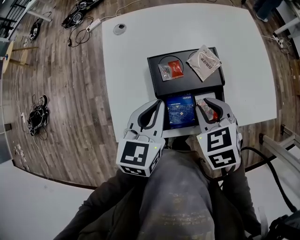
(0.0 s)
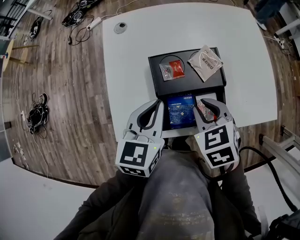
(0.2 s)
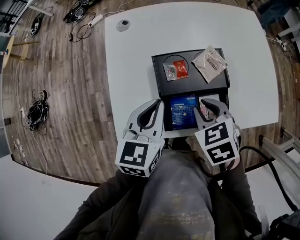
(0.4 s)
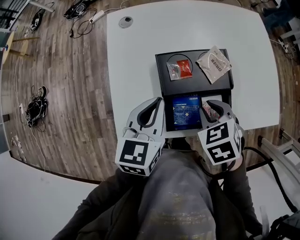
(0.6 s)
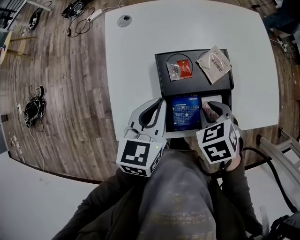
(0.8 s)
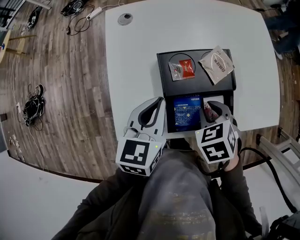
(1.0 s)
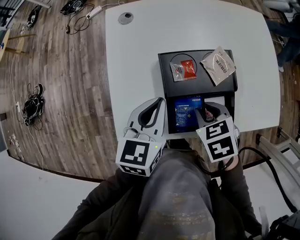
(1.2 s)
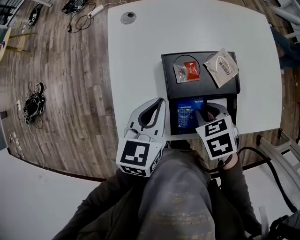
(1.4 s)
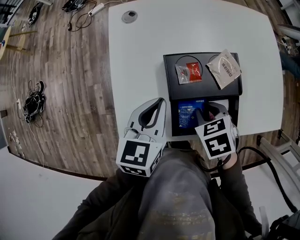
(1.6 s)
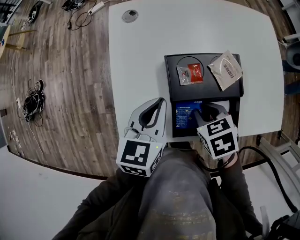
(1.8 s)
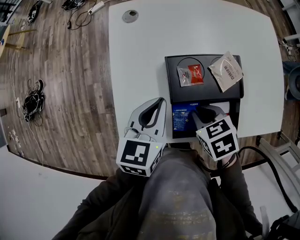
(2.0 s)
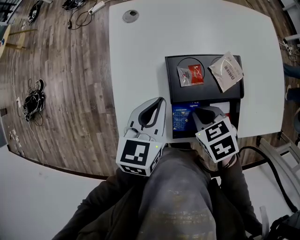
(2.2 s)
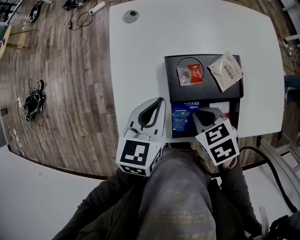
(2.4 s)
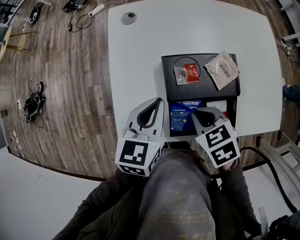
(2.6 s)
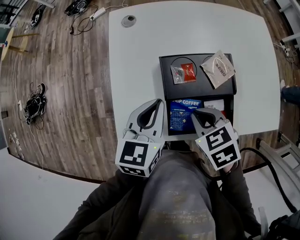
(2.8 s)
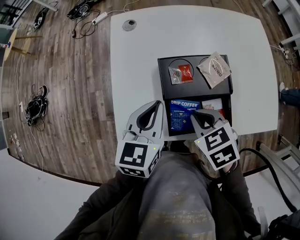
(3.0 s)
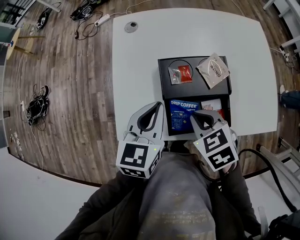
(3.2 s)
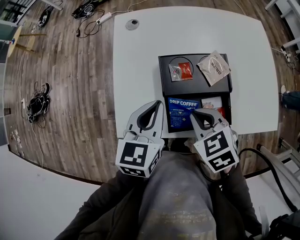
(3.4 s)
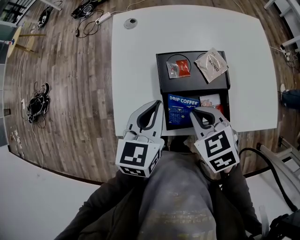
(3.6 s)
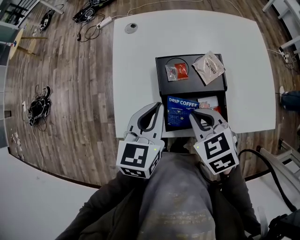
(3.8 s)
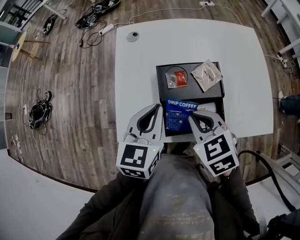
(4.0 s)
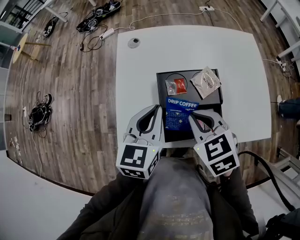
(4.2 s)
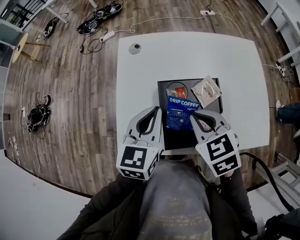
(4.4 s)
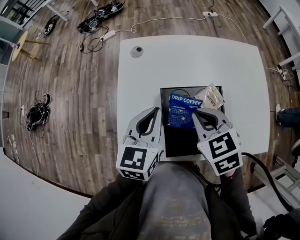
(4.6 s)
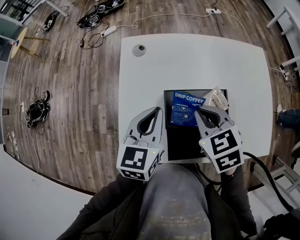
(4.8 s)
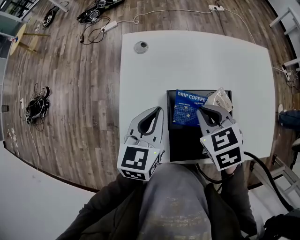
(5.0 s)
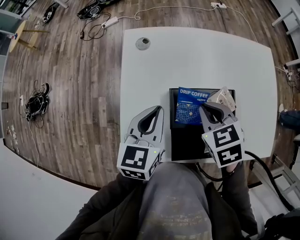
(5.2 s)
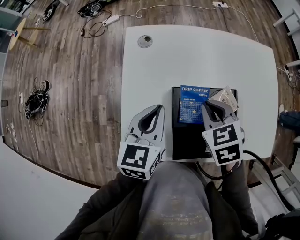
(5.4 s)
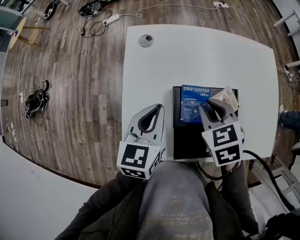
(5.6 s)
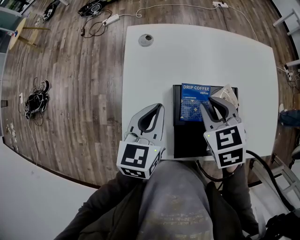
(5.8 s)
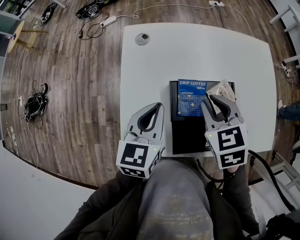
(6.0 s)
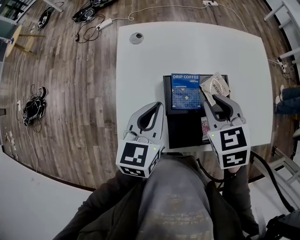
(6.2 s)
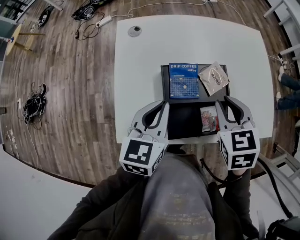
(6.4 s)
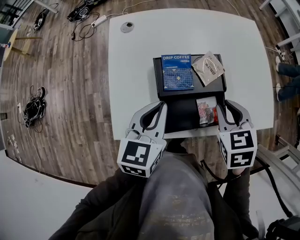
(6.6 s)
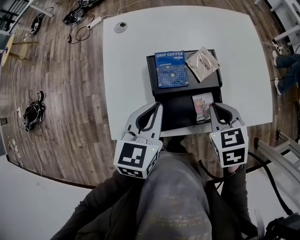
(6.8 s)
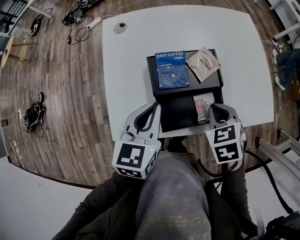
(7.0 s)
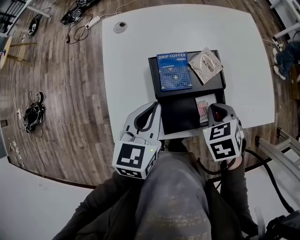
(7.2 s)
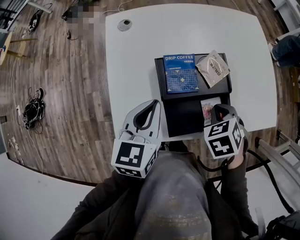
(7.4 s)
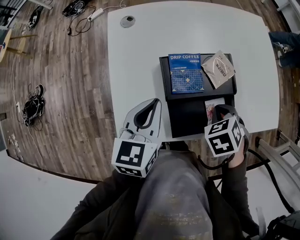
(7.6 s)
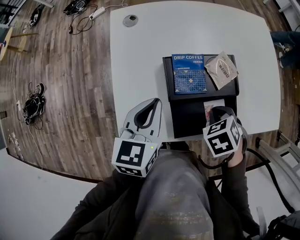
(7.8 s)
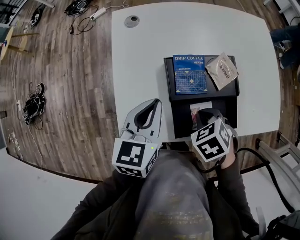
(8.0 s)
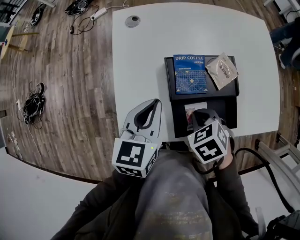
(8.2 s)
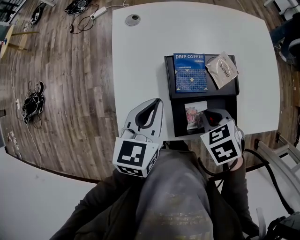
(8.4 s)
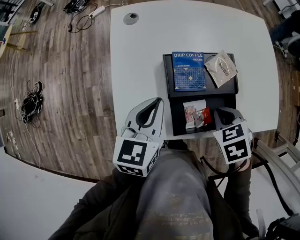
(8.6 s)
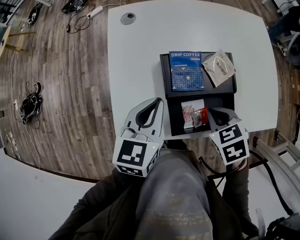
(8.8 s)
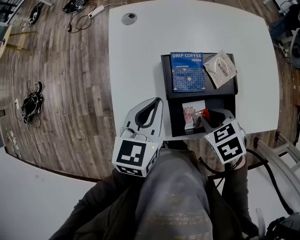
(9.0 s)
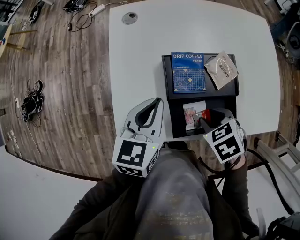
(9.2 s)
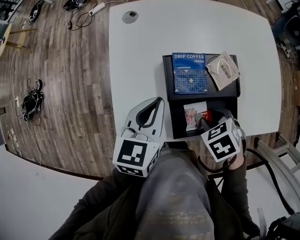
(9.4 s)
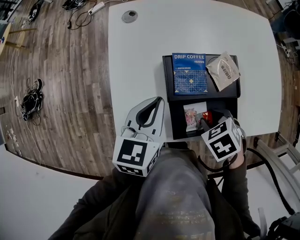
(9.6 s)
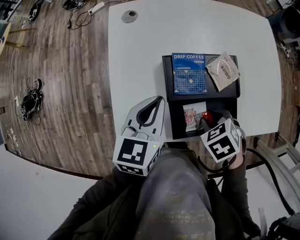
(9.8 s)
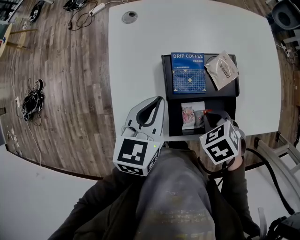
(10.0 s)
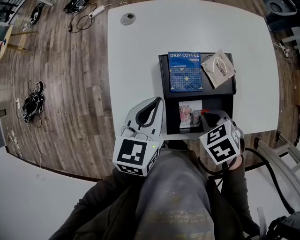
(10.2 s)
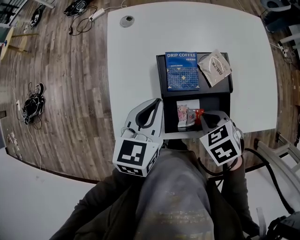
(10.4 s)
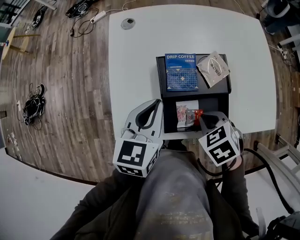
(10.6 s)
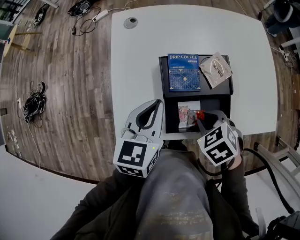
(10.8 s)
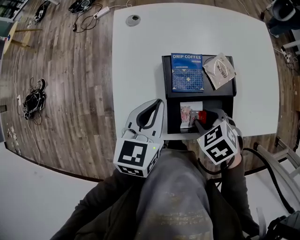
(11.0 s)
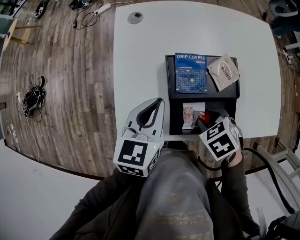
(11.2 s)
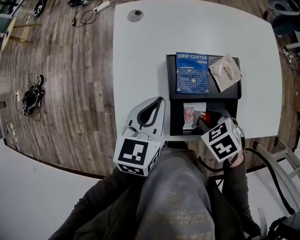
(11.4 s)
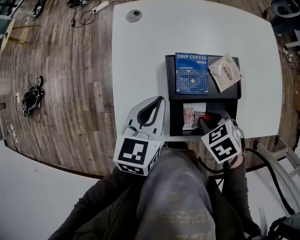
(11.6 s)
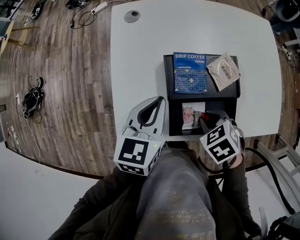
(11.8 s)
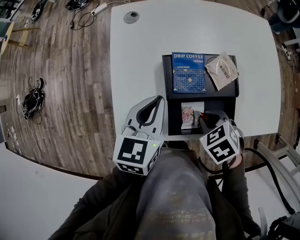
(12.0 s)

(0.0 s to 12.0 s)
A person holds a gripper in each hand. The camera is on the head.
0.0 s - 1.6 s: The left gripper moves about 5 cm. Meanwhile the right gripper heads downward, covering roughly 10 cm.
1.6 s - 3.0 s: The right gripper is displaced upward by approximately 5 cm.
3.0 s - 4.4 s: The left gripper ends up approximately 5 cm from where it was; the right gripper heads upward and forward, covering approximately 10 cm.
4.4 s - 6.0 s: The right gripper heads forward, covering about 5 cm; the left gripper moves approximately 5 cm.
6.0 s - 7.6 s: The right gripper shifts some 20 cm downward, to the right and backward, rotates roughly 30 degrees, and closes its fingers.
7.6 s - 9.0 s: The right gripper opens.
9.0 s - 10.4 s: The right gripper closes up.
10.4 s - 12.0 s: The right gripper opens and closes again.

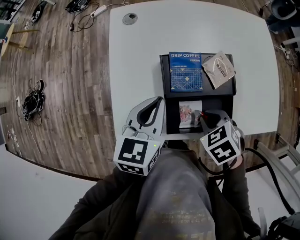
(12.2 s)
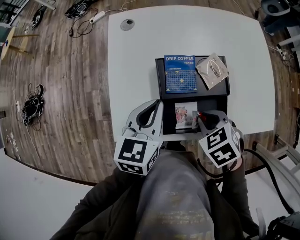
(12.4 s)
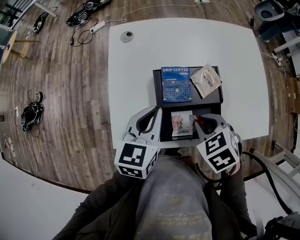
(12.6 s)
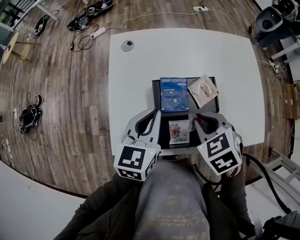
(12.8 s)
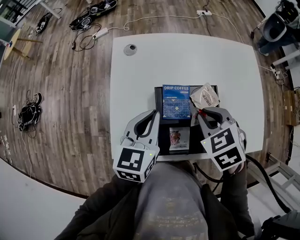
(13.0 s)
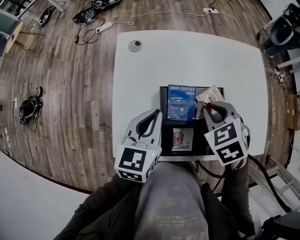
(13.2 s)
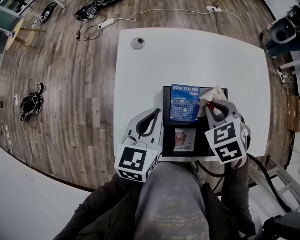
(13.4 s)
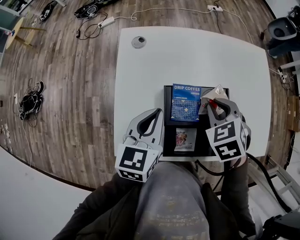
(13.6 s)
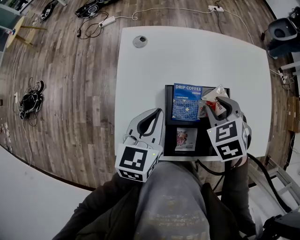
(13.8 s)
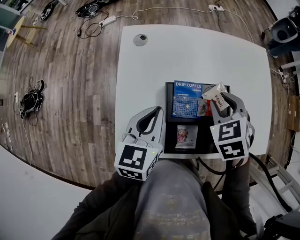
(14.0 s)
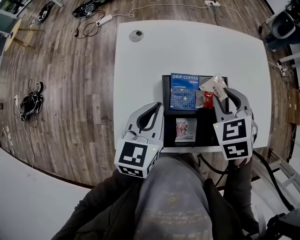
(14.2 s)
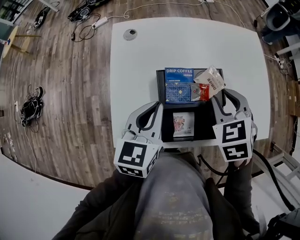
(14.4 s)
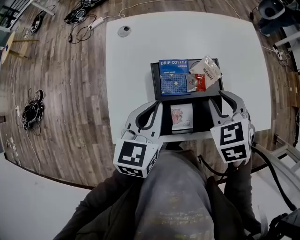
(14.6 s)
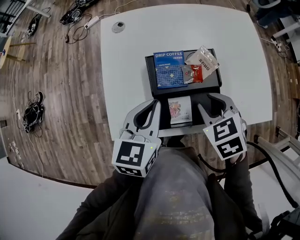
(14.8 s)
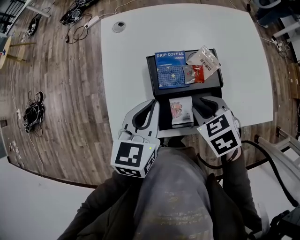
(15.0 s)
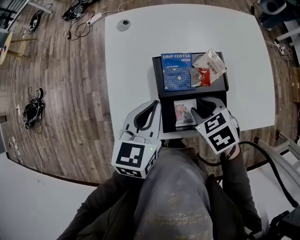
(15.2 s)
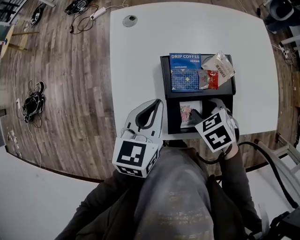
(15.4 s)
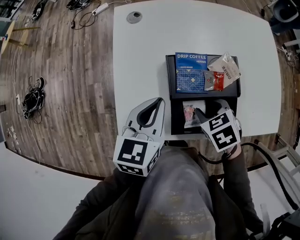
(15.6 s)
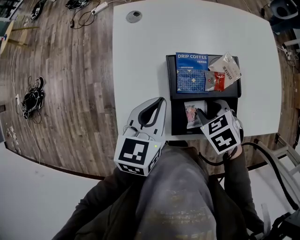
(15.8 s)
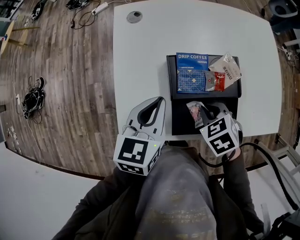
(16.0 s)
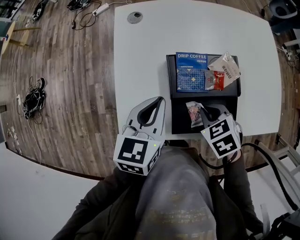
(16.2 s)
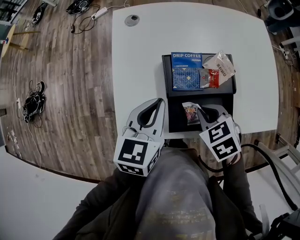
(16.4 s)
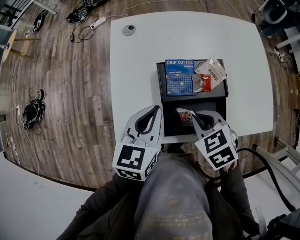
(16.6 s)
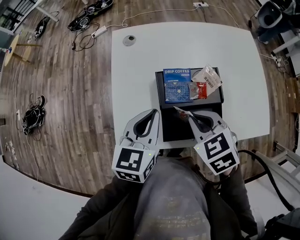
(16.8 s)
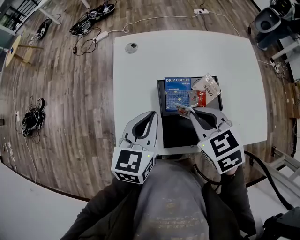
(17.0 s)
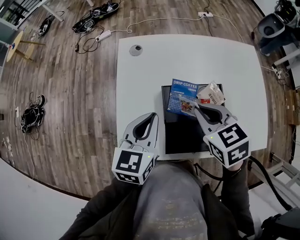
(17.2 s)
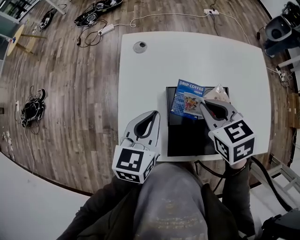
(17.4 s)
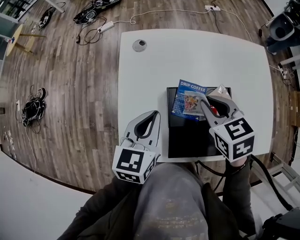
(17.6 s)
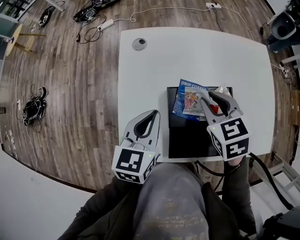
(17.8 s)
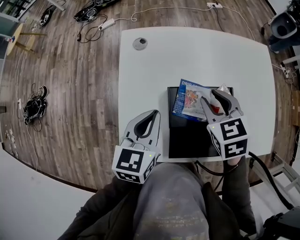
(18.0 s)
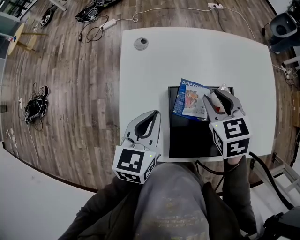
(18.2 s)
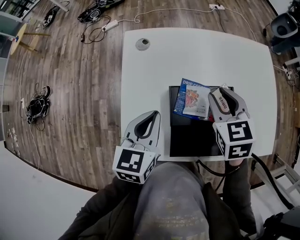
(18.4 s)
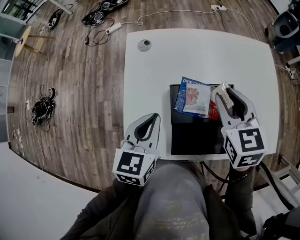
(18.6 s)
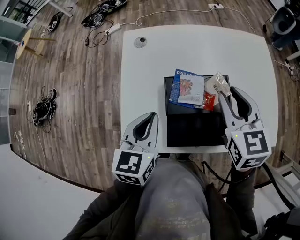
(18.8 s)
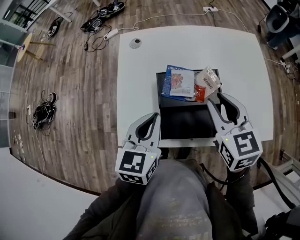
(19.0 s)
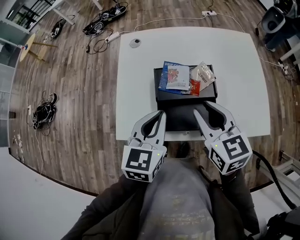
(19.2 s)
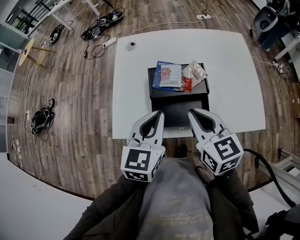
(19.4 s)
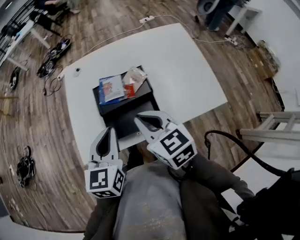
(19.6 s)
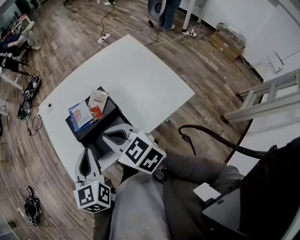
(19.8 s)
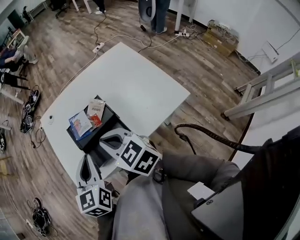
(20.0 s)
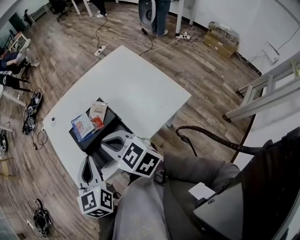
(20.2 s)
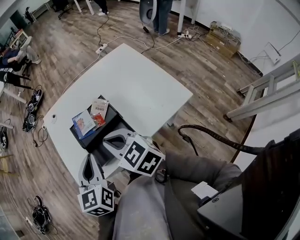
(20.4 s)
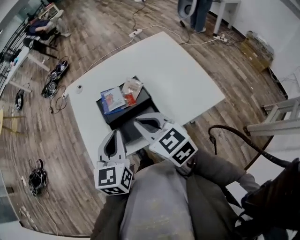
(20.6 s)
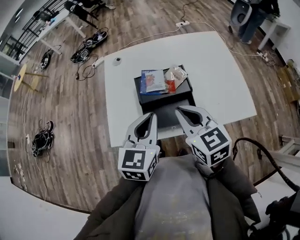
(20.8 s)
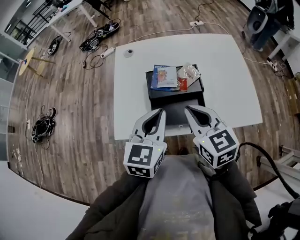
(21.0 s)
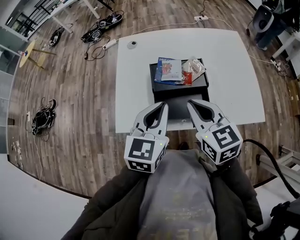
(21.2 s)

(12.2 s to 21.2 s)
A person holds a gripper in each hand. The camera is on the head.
12.2 s - 13.8 s: The right gripper is displaced forward and upward by roughly 15 cm; the left gripper moves approximately 5 cm.
13.8 s - 15.2 s: The left gripper is displaced backward by roughly 5 cm; the right gripper is displaced backward and downward by about 15 cm.
15.2 s - 16.6 s: The right gripper closes.
16.6 s - 18.2 s: The right gripper shifts roughly 15 cm forward, and opens its fingers. The left gripper goes roughly 5 cm forward.
18.2 s - 19.8 s: The right gripper shifts roughly 20 cm backward, rotates about 20 degrees, and closes, while the left gripper shifts approximately 20 cm backward, to the right and upward.
19.8 s - 21.2 s: The grippers stay close to where they were, moving slightly.

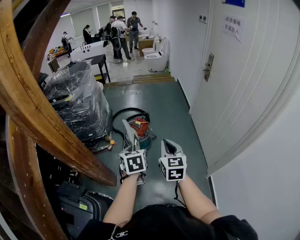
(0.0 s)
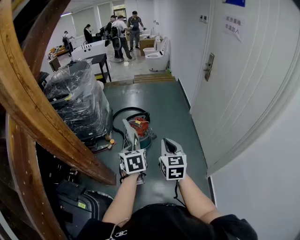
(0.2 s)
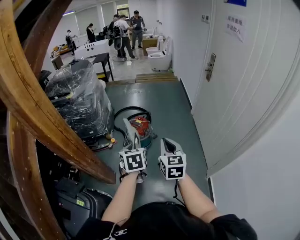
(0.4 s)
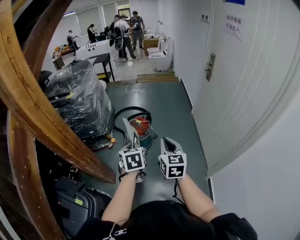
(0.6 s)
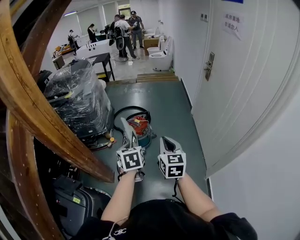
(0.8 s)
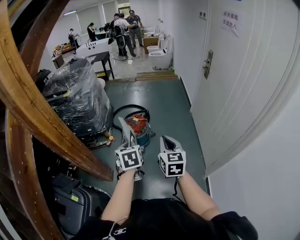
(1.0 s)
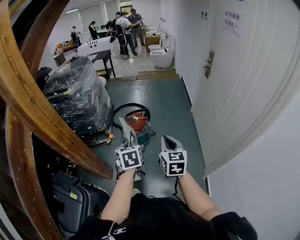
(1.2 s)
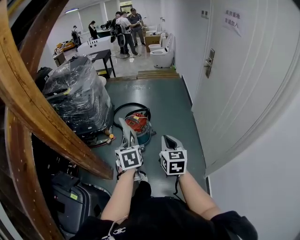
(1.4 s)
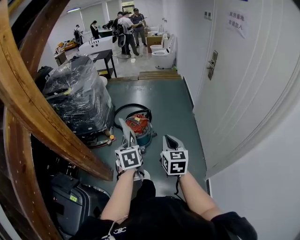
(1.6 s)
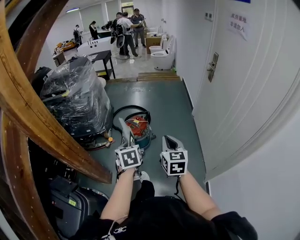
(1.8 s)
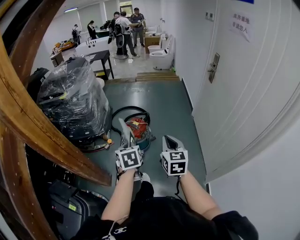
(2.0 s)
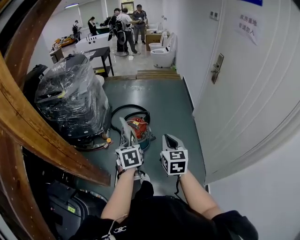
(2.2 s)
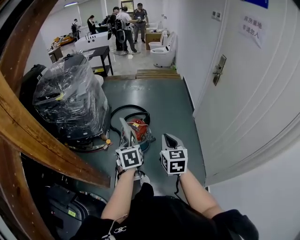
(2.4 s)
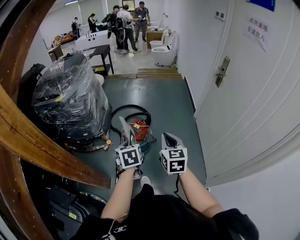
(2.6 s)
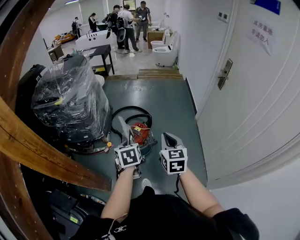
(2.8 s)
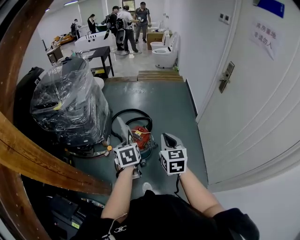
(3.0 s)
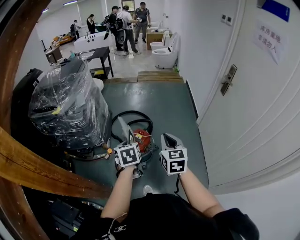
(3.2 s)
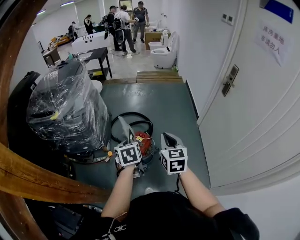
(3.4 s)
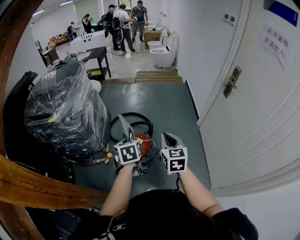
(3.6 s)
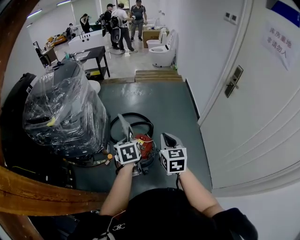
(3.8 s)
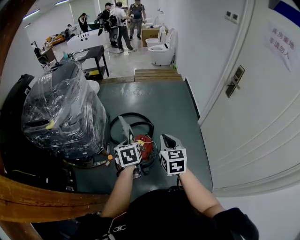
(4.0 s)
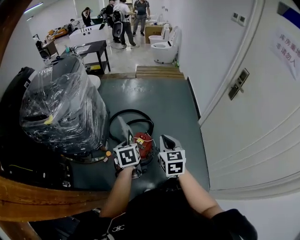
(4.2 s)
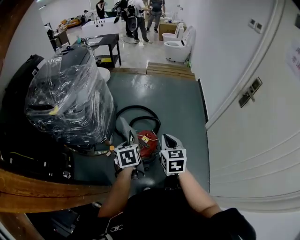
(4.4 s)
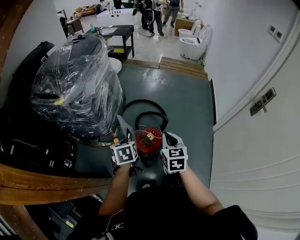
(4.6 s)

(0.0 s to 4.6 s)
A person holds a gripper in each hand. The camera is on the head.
0.0 s - 1.6 s: The right gripper shifts about 5 cm to the right.
1.6 s - 3.0 s: Both grippers move forward, roughly 25 cm.
3.0 s - 4.6 s: The left gripper is displaced forward, downward and to the left by roughly 20 cm, while the right gripper heads forward, covering roughly 20 cm.
